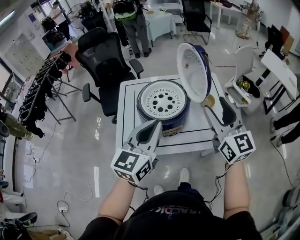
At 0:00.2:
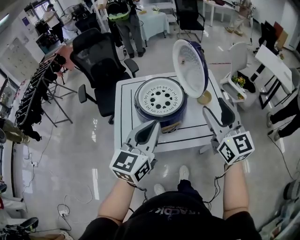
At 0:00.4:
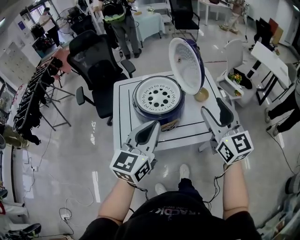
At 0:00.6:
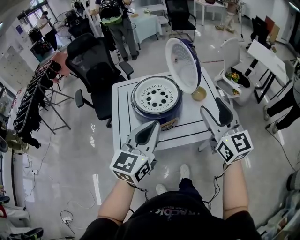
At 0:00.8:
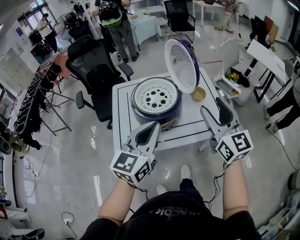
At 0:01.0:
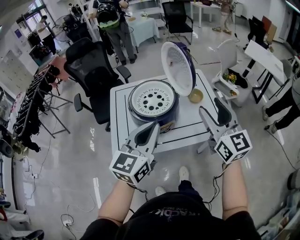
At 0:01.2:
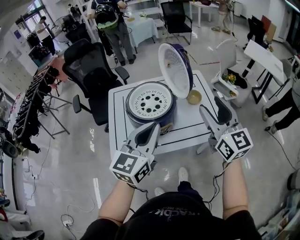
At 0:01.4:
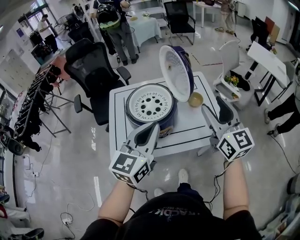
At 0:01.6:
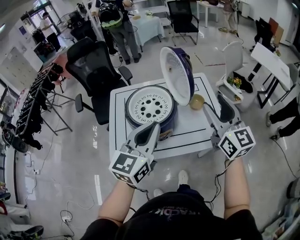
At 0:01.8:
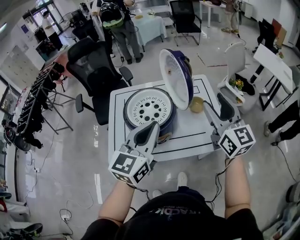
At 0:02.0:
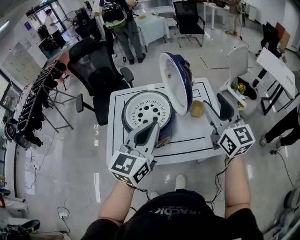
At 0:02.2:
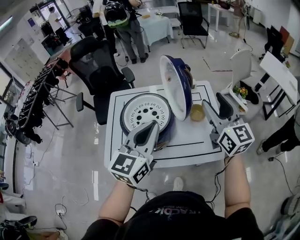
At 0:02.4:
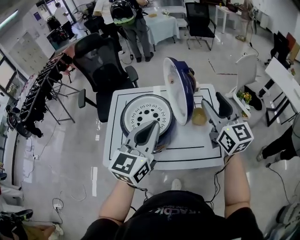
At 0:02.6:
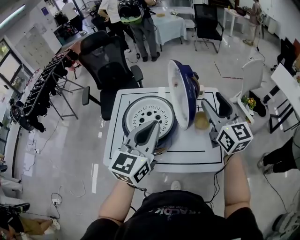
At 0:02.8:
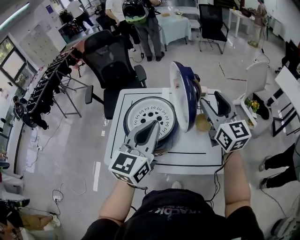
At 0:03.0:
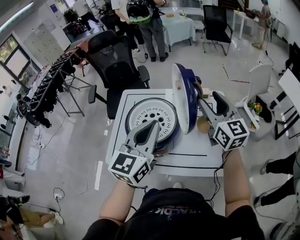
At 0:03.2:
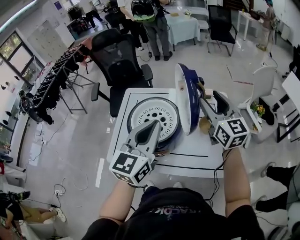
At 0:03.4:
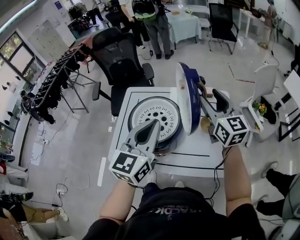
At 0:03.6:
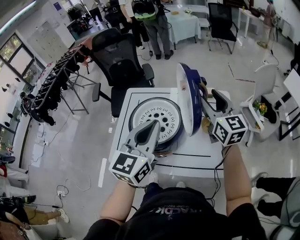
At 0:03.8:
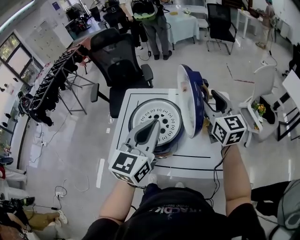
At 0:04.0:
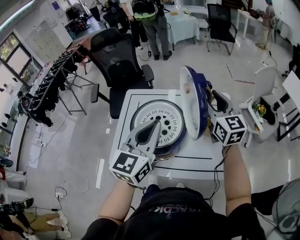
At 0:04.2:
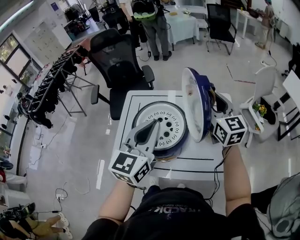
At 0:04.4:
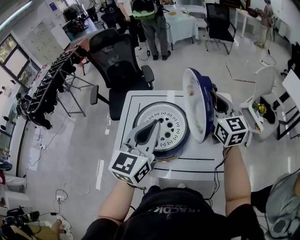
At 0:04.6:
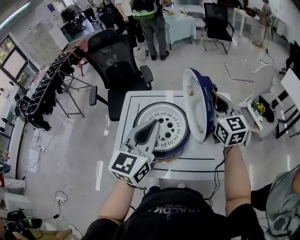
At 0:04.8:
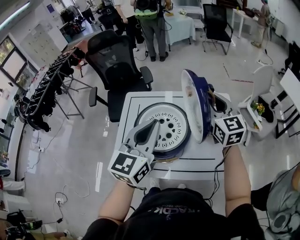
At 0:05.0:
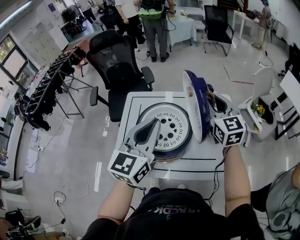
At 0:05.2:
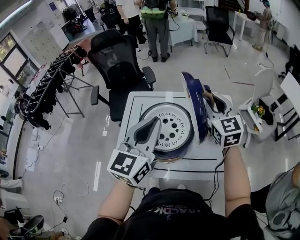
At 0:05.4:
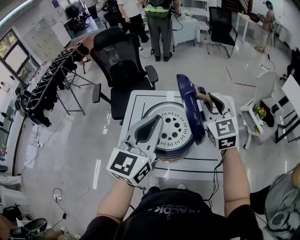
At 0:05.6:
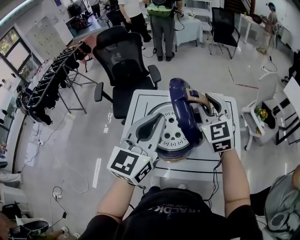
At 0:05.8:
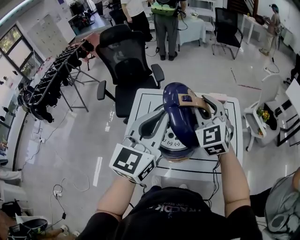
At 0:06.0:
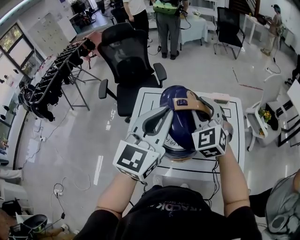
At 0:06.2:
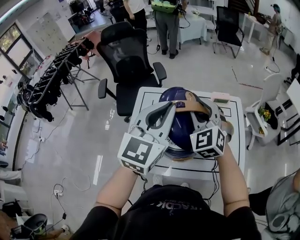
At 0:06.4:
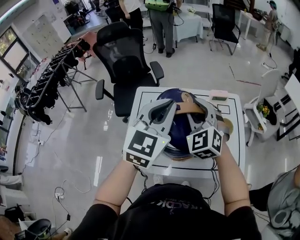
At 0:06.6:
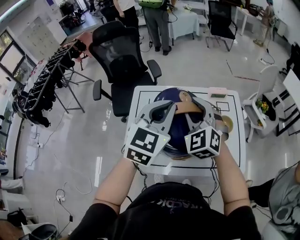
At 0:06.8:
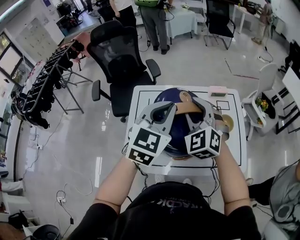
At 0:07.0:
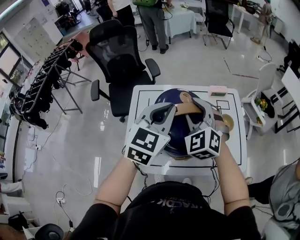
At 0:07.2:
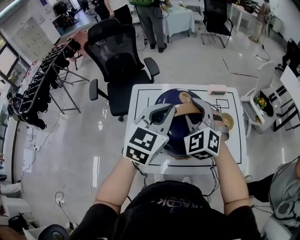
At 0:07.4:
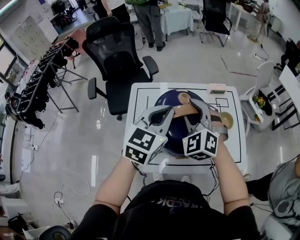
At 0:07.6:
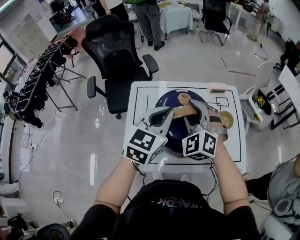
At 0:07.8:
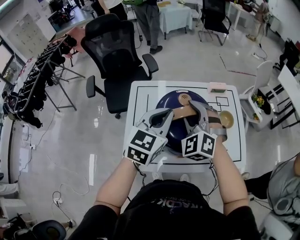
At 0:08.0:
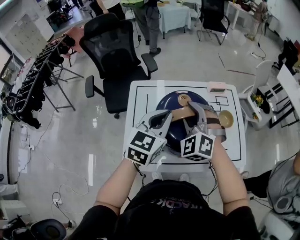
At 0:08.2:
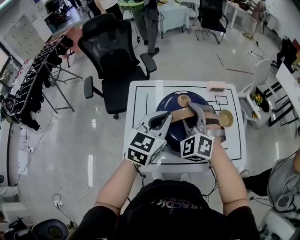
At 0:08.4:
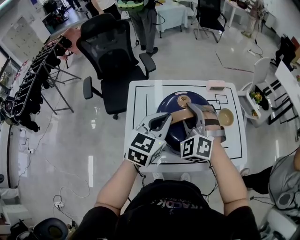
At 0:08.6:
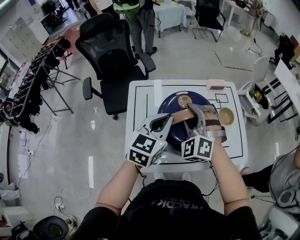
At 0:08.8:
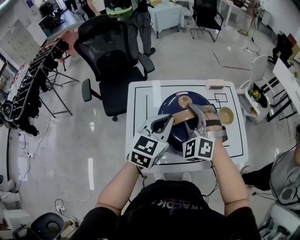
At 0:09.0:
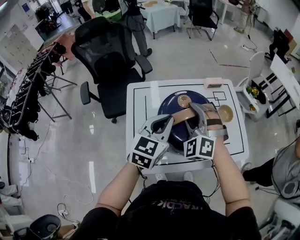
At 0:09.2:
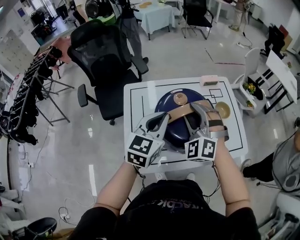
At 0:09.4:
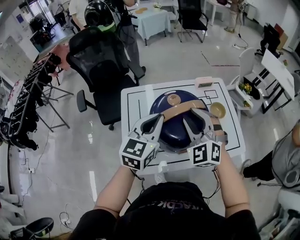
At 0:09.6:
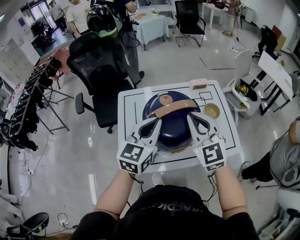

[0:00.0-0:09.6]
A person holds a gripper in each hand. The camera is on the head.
0:00.0 to 0:01.6: The right gripper is displaced to the right by roughly 5 cm, and goes backward and returns, some 5 cm each way.
0:01.6 to 0:03.2: The left gripper travels forward by roughly 10 cm; the right gripper shifts about 20 cm forward.
0:03.2 to 0:04.8: The right gripper moves about 5 cm, and closes. The left gripper moves roughly 5 cm.
0:04.8 to 0:06.4: The left gripper shifts by some 5 cm. Meanwhile the right gripper travels to the left by roughly 15 cm, and rotates some 40 degrees.
0:06.4 to 0:08.0: The left gripper goes about 10 cm downward. The right gripper is displaced downward by some 5 cm.
0:08.0 to 0:09.6: The right gripper moves to the right, backward and upward, about 10 cm, rotates about 40 degrees, and closes. The left gripper shifts roughly 5 cm backward.

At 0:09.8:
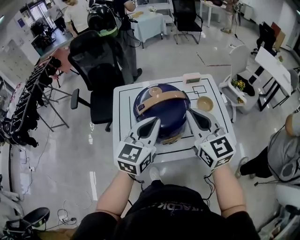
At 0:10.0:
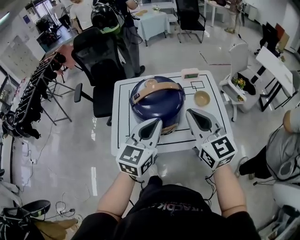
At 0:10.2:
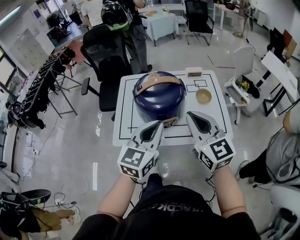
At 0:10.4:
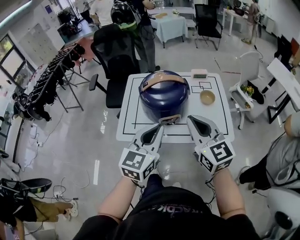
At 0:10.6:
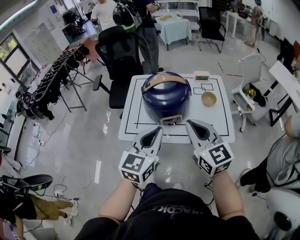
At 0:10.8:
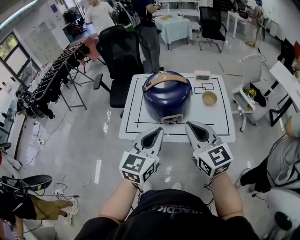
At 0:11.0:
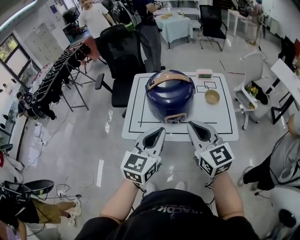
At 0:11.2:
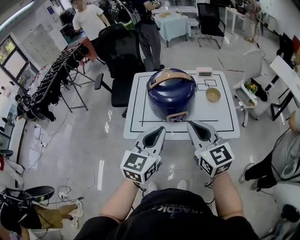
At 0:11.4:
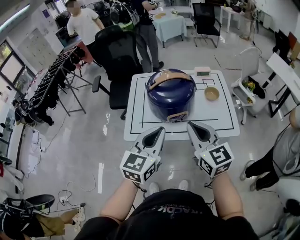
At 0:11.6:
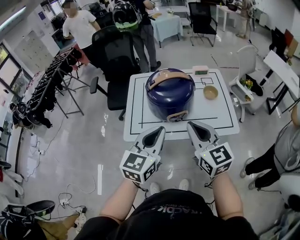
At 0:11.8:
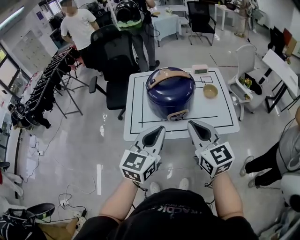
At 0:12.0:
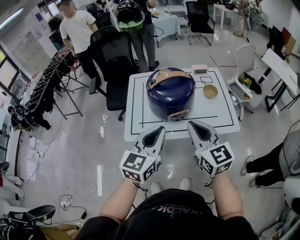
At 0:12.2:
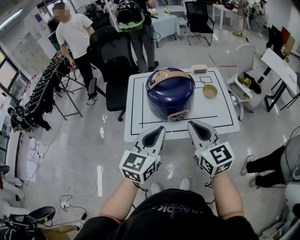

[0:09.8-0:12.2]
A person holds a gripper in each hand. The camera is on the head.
0:09.8 to 0:11.0: Both grippers travel together backward, about 15 cm.
0:11.0 to 0:12.2: The grippers stay close to where they were, moving slightly.

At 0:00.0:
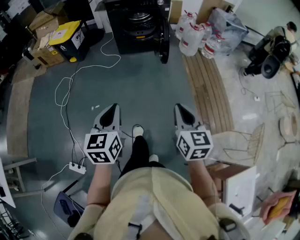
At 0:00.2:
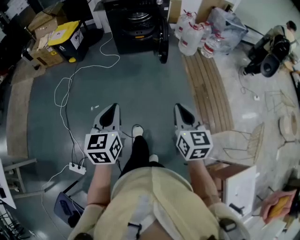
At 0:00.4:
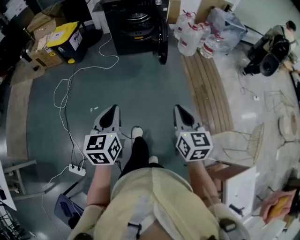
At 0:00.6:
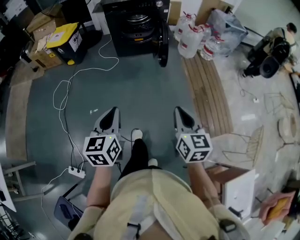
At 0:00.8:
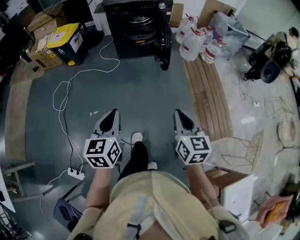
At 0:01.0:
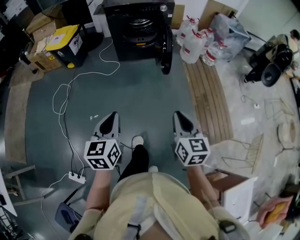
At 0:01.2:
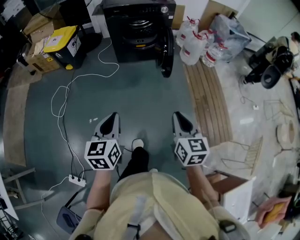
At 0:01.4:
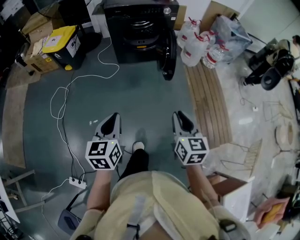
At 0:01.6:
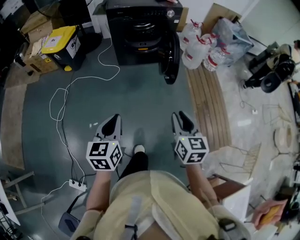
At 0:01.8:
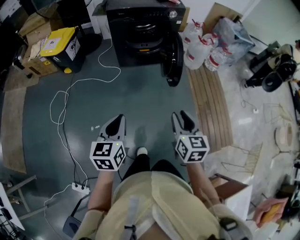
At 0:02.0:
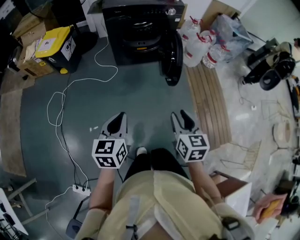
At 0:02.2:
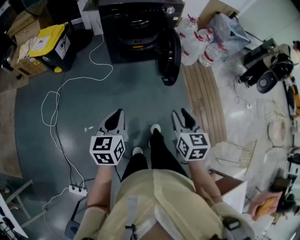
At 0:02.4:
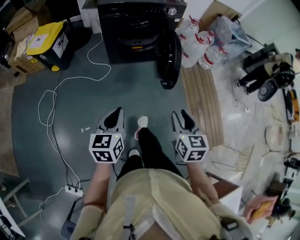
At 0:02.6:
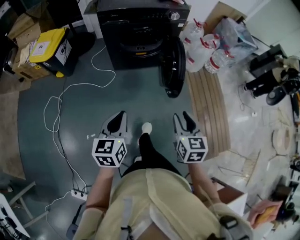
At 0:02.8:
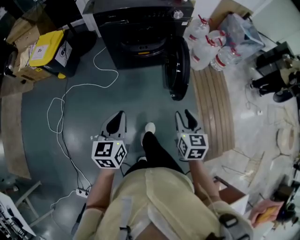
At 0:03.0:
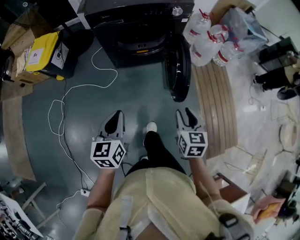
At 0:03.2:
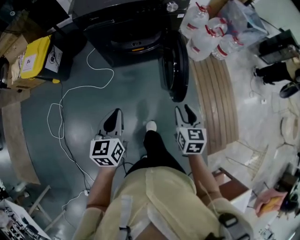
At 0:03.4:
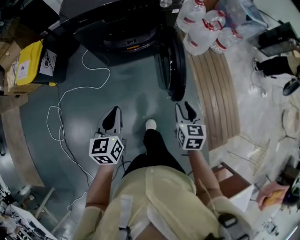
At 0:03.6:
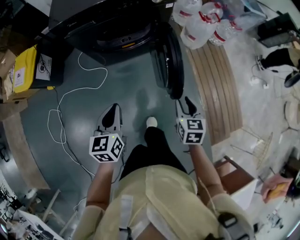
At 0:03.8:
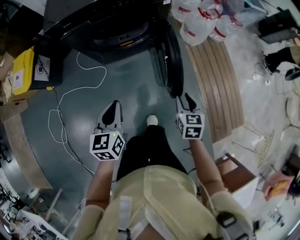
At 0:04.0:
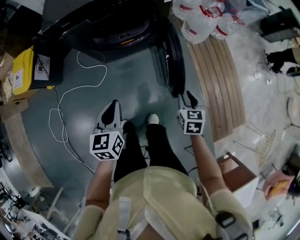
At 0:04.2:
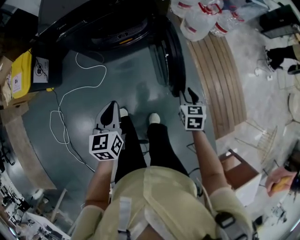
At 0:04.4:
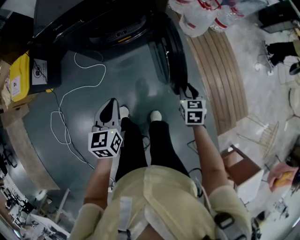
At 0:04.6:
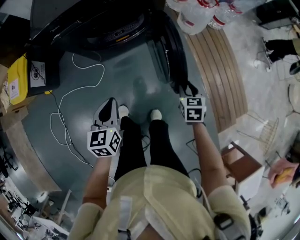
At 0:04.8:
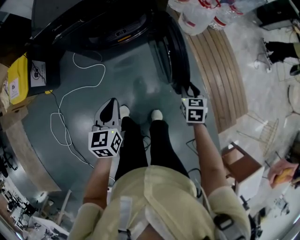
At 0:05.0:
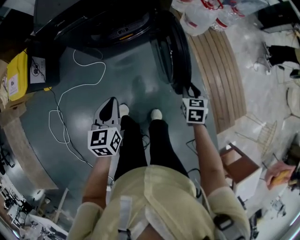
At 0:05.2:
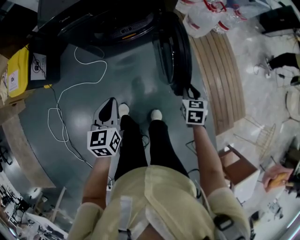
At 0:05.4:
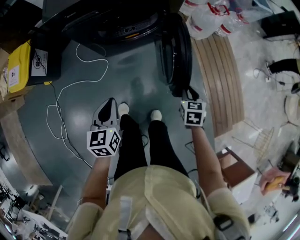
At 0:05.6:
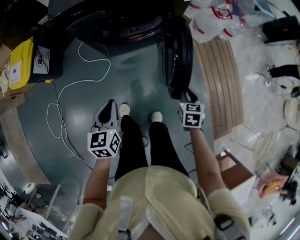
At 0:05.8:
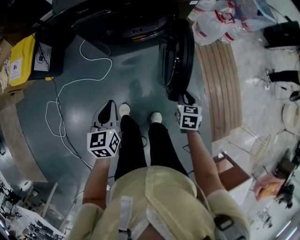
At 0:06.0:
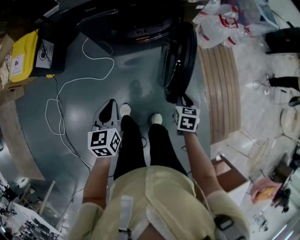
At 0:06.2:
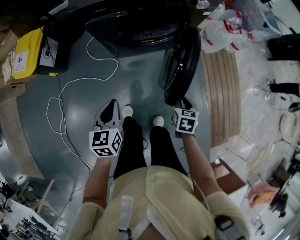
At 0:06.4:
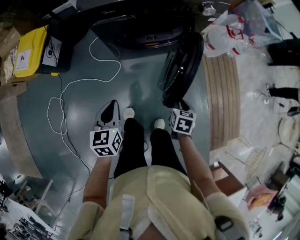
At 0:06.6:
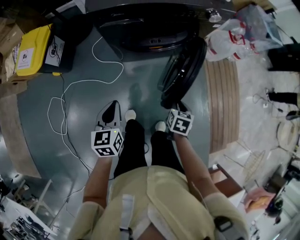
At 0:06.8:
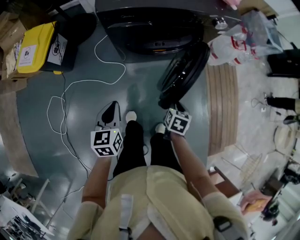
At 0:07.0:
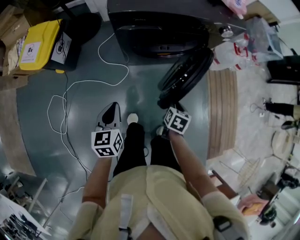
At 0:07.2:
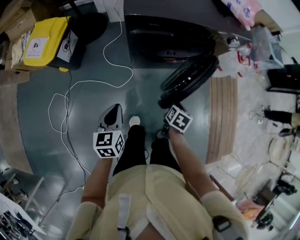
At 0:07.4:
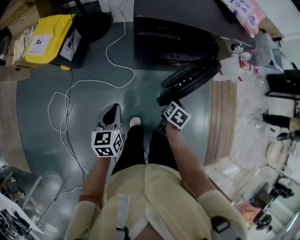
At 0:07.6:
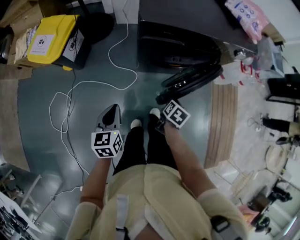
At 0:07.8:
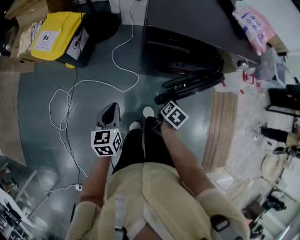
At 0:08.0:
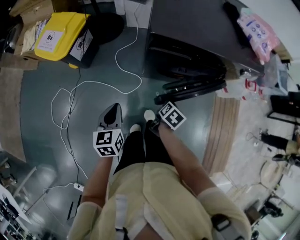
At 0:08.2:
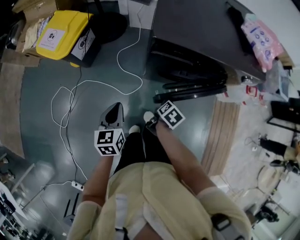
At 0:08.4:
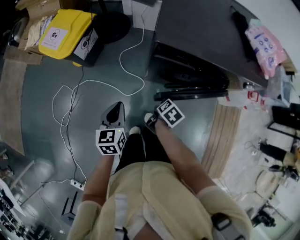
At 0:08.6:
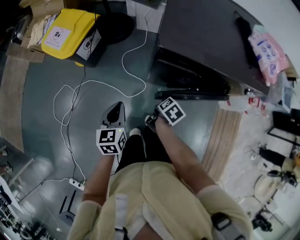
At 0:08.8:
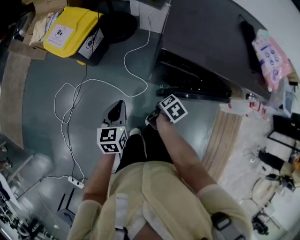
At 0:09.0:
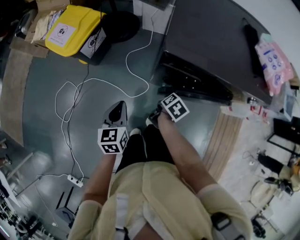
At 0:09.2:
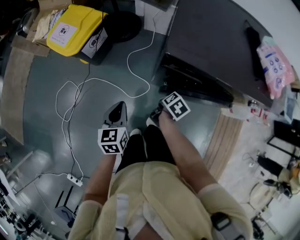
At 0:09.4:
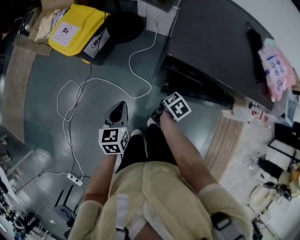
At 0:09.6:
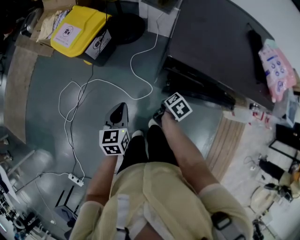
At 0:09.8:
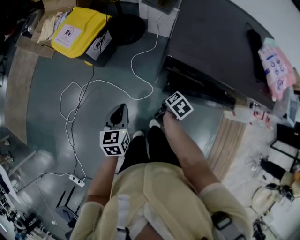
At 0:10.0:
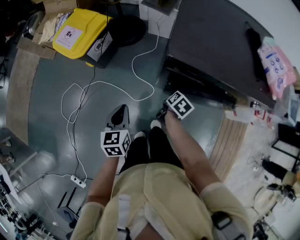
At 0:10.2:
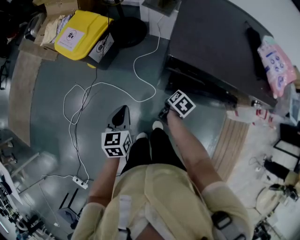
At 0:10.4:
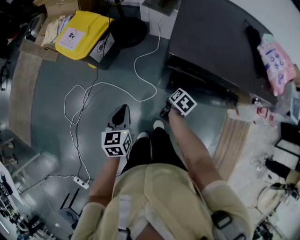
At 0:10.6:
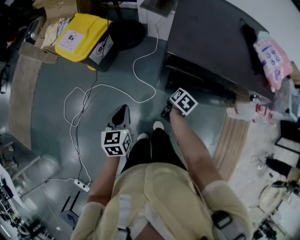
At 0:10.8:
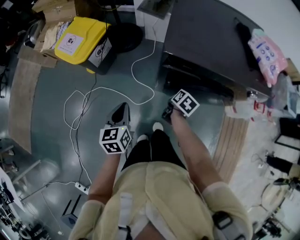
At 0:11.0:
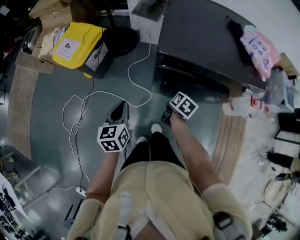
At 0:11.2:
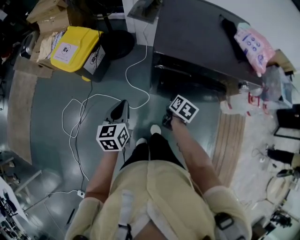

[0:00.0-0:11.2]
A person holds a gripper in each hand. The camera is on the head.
0:00.0 to 0:01.6: Both grippers travel together forward, approximately 20 cm.
0:01.6 to 0:03.2: The left gripper goes some 35 cm forward. The right gripper moves forward and downward, some 35 cm.
0:03.2 to 0:04.8: The right gripper goes approximately 15 cm downward and forward. Meanwhile the left gripper heads forward and downward, covering some 15 cm.
0:04.8 to 0:06.4: The two grippers go roughly 15 cm to the left.
0:06.4 to 0:08.0: The right gripper goes roughly 25 cm to the left and forward, while the left gripper is displaced to the left by roughly 20 cm.
0:08.0 to 0:09.6: The left gripper is displaced forward by about 5 cm. Meanwhile the right gripper travels forward and to the left by some 15 cm.
0:09.6 to 0:11.2: The grippers both shift upward by approximately 5 cm.
